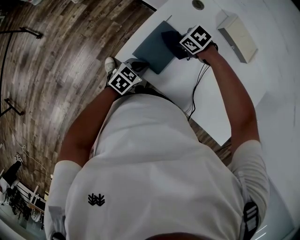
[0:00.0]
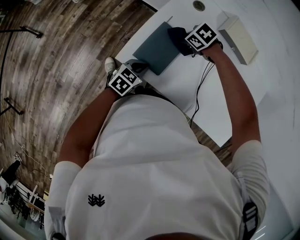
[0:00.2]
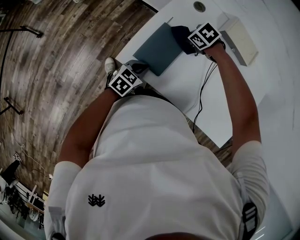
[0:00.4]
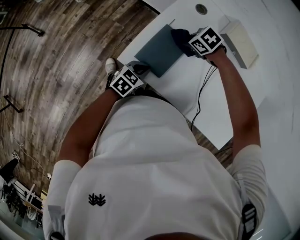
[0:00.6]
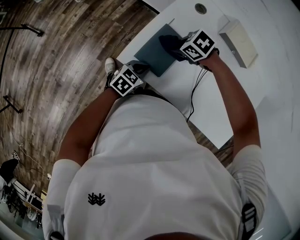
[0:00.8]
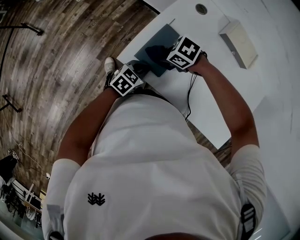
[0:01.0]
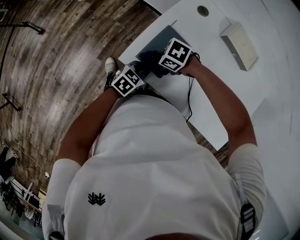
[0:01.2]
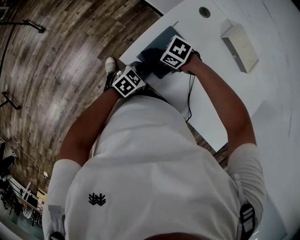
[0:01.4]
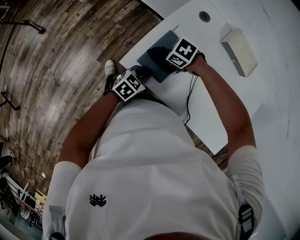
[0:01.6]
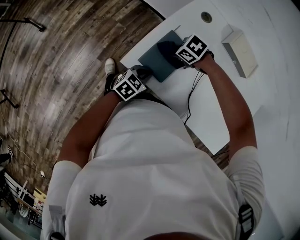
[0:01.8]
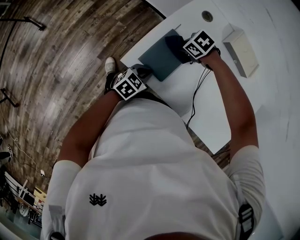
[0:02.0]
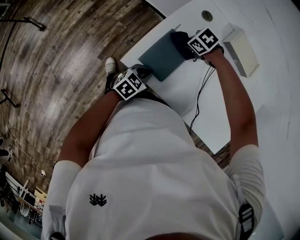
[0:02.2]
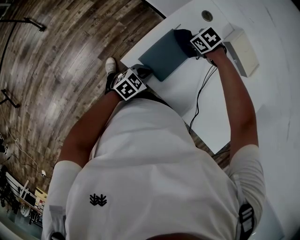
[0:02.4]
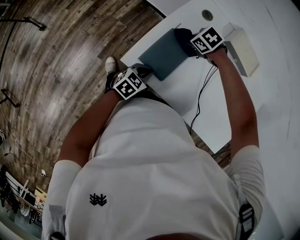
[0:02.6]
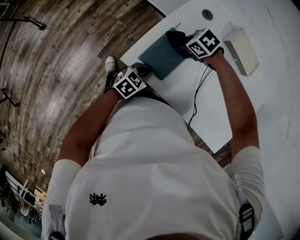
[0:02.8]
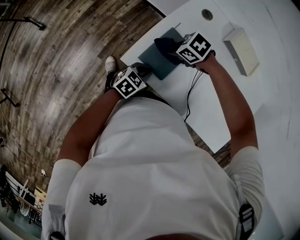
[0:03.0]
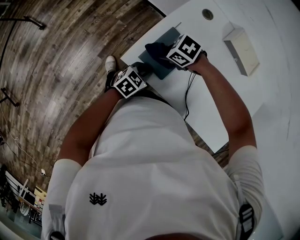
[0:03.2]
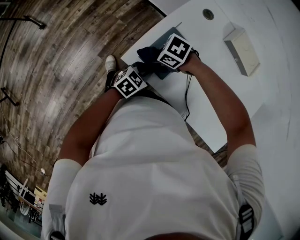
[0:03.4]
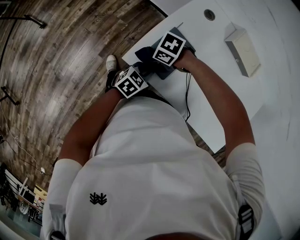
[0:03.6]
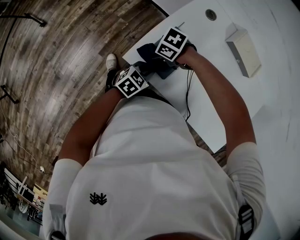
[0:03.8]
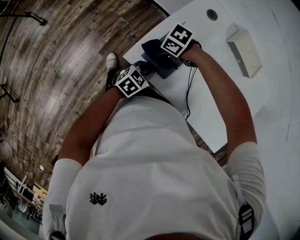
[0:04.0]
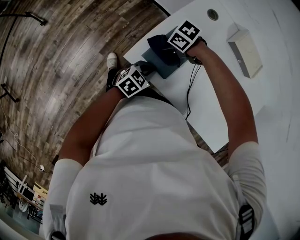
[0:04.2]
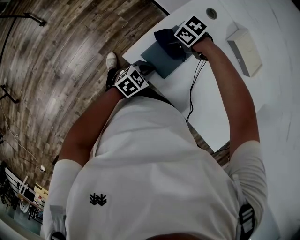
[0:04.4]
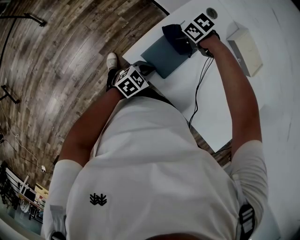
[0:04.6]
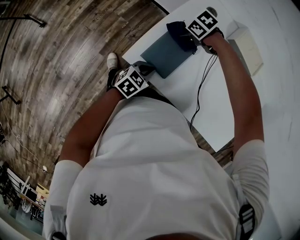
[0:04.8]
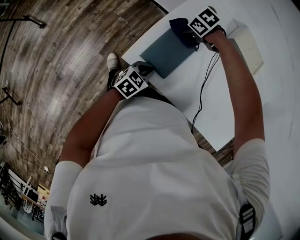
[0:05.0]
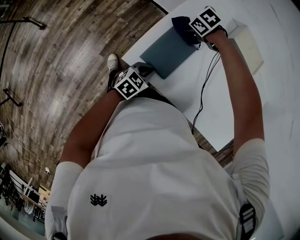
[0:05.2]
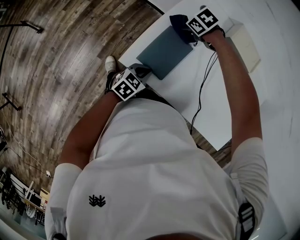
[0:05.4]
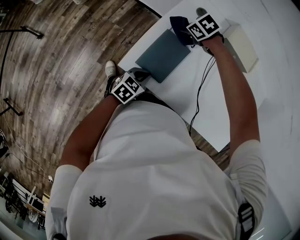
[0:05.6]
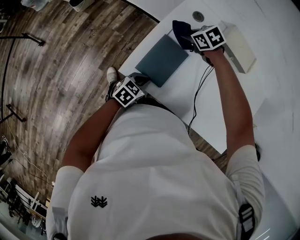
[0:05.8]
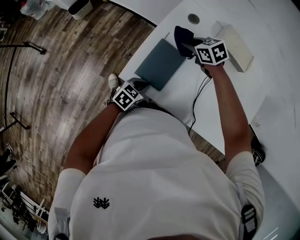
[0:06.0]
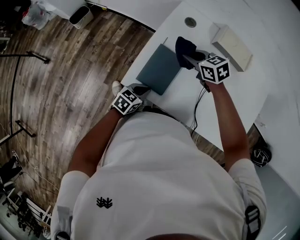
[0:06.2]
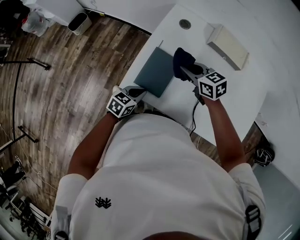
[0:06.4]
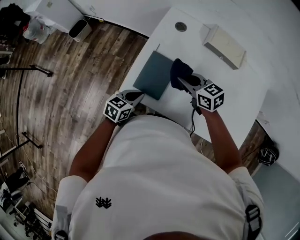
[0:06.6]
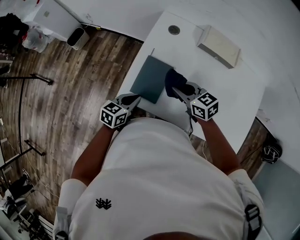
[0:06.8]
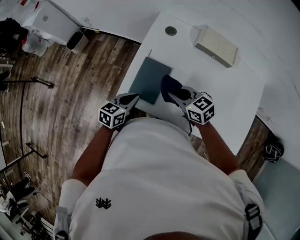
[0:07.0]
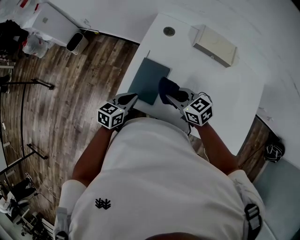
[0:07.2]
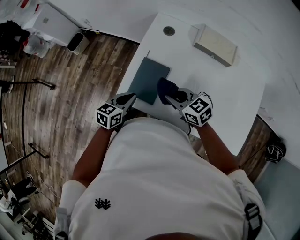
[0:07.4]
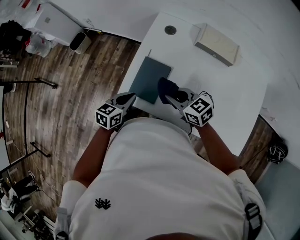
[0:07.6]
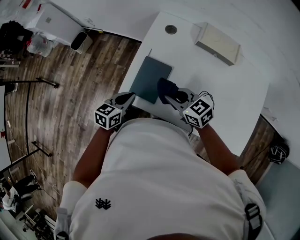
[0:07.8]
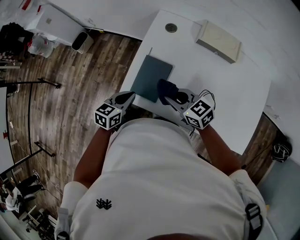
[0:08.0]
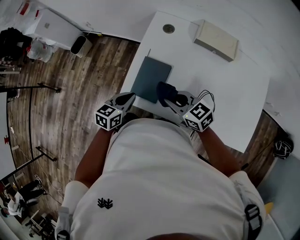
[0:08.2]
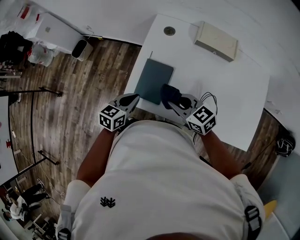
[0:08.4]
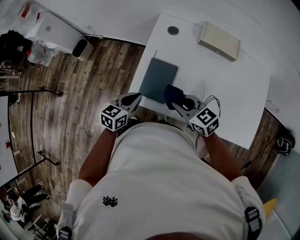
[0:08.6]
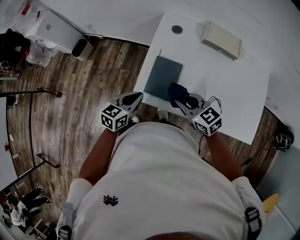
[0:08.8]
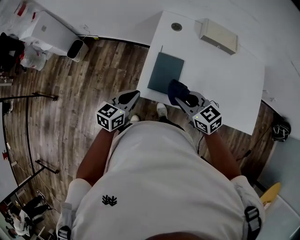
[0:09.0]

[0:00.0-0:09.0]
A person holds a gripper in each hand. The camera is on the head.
0:04.4 to 0:06.0: The right gripper moves approximately 15 cm, and turns by roughly 40 degrees.
0:06.0 to 0:07.6: The right gripper shifts by some 20 cm, and rotates roughly 30 degrees, while the left gripper moves upward, approximately 10 cm.
0:07.6 to 0:09.0: The left gripper travels to the left by some 10 cm, while the right gripper travels to the left and backward by approximately 10 cm.

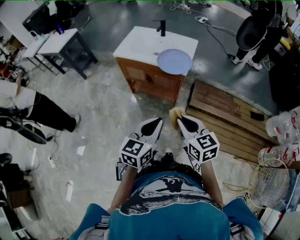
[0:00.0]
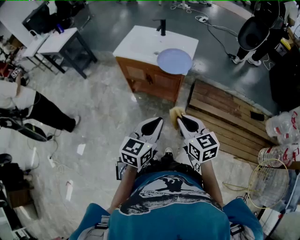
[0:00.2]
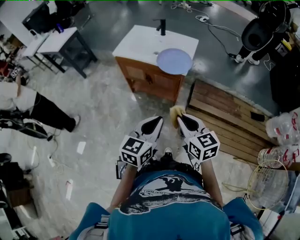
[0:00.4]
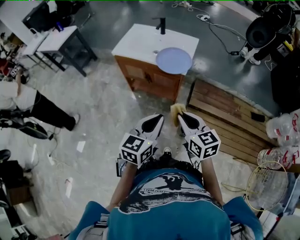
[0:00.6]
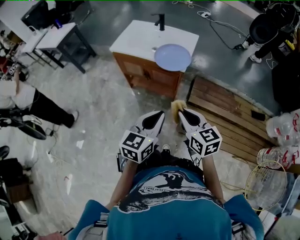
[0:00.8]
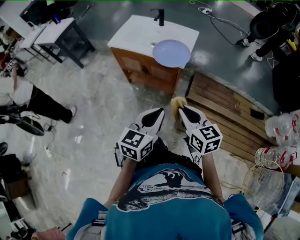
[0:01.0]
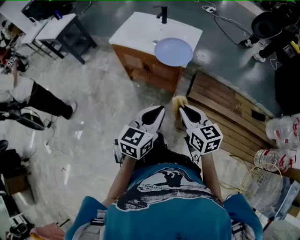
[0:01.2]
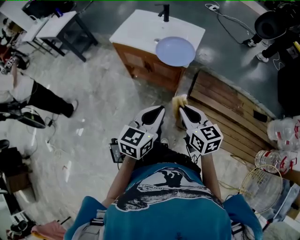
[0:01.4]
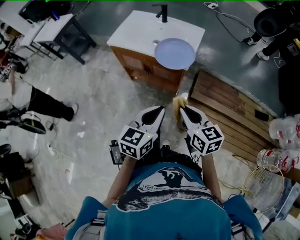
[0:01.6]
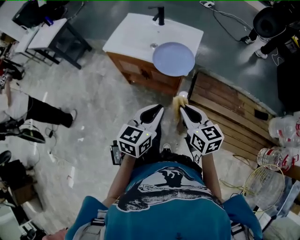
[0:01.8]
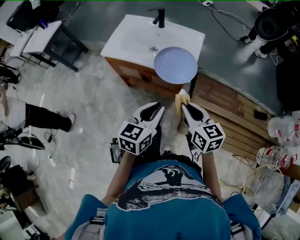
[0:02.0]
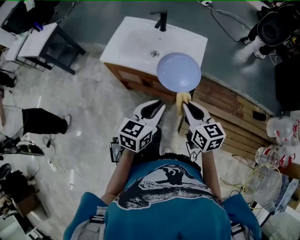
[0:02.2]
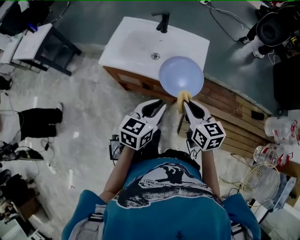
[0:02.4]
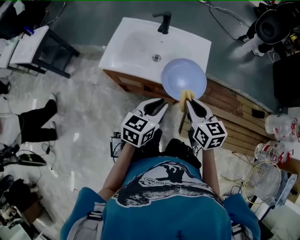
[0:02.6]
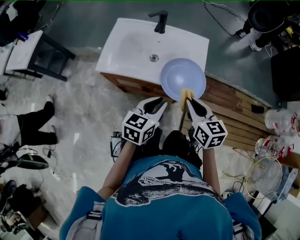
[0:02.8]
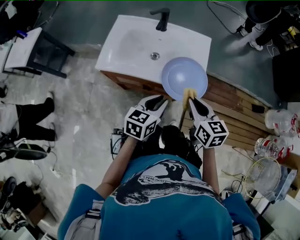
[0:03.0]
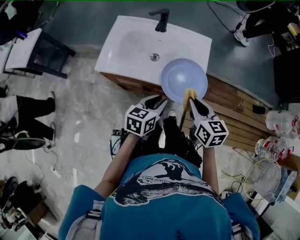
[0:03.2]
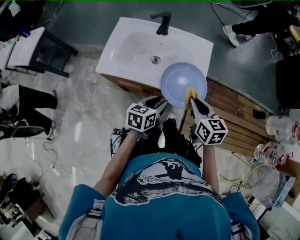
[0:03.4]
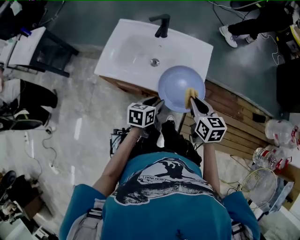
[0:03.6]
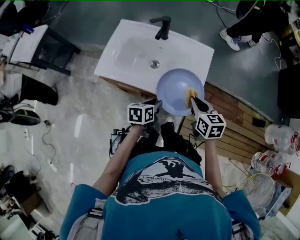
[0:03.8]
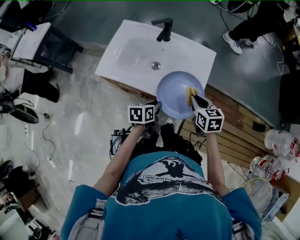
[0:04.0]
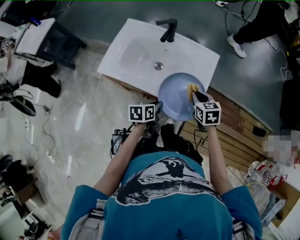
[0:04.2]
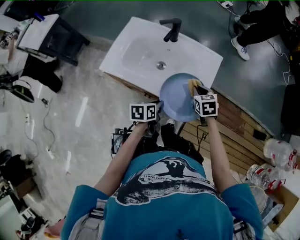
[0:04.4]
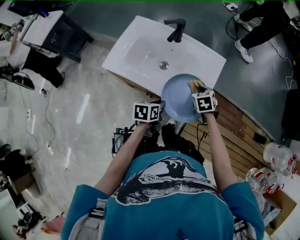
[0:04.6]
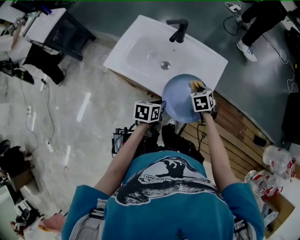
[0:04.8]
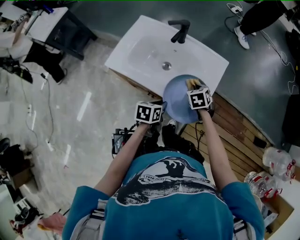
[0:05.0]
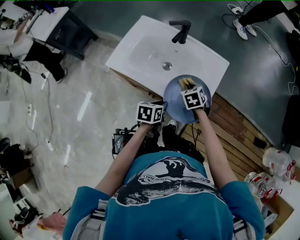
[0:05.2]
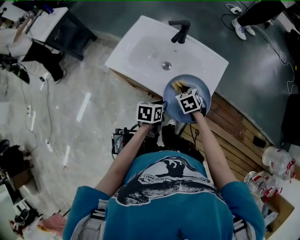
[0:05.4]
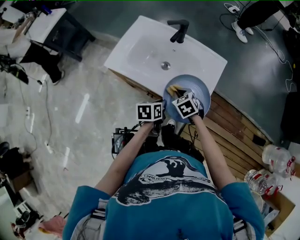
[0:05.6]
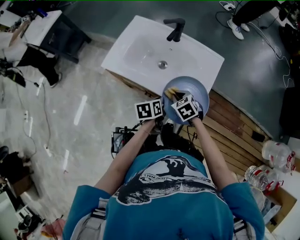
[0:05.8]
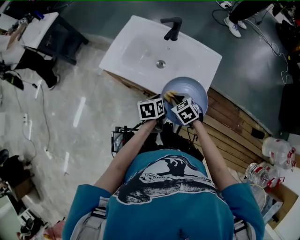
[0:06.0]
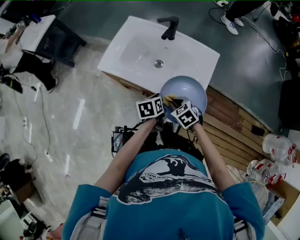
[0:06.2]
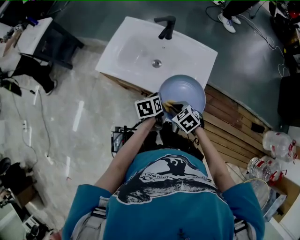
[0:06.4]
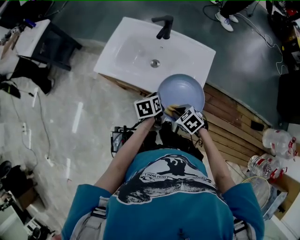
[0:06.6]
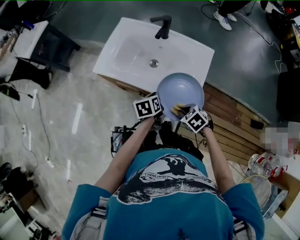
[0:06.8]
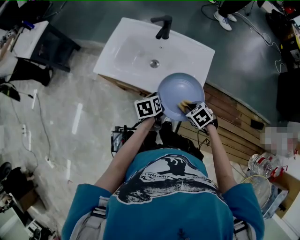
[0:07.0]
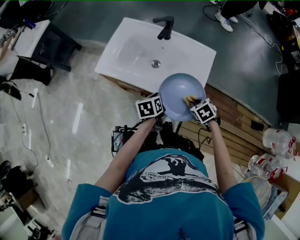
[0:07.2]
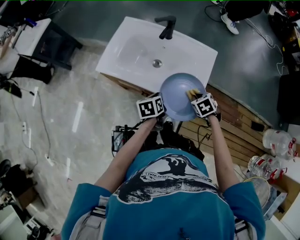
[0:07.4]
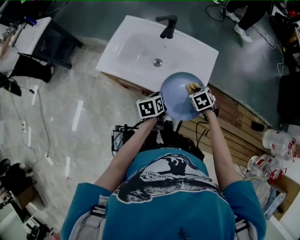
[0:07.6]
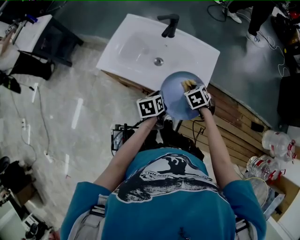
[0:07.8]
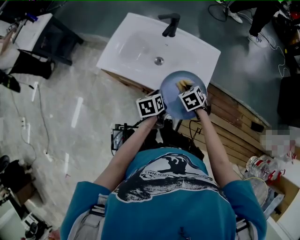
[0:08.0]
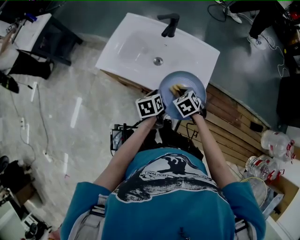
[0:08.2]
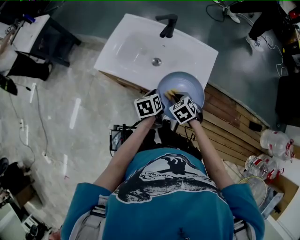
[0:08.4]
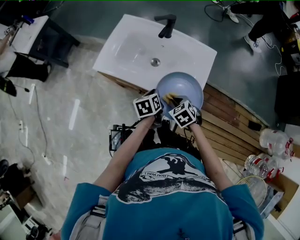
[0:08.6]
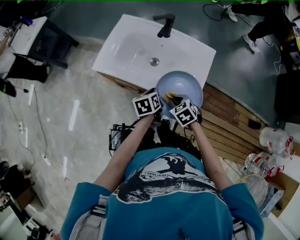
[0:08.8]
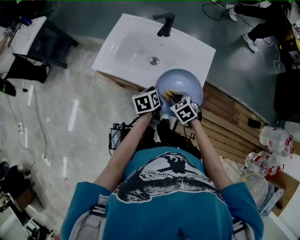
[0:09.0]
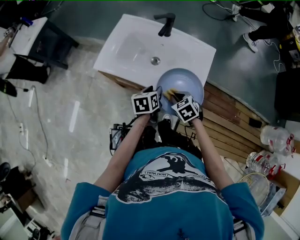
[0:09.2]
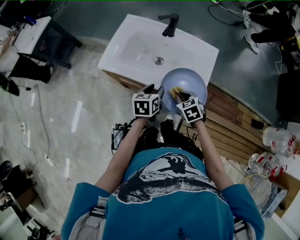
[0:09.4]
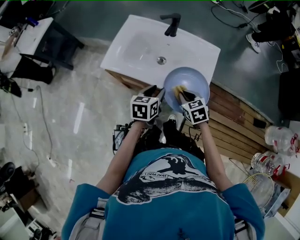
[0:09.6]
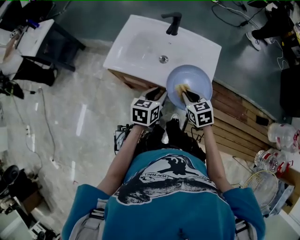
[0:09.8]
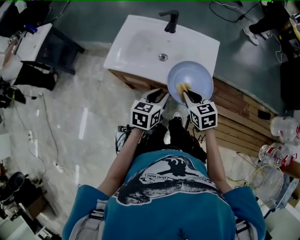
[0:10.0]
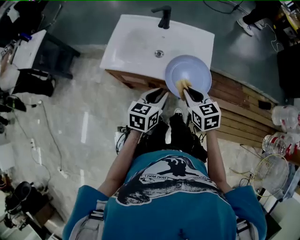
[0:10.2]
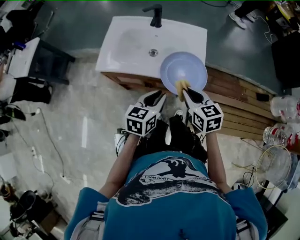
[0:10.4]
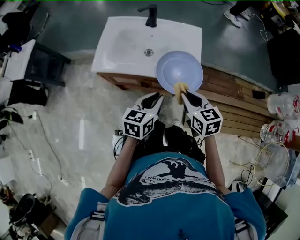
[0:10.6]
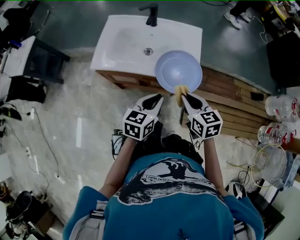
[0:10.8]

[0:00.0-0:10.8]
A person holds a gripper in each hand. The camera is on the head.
0:00.0 to 0:01.6: Both grippers travel together forward, approximately 10 cm.
0:01.6 to 0:03.0: The left gripper goes some 25 cm forward and to the left. Meanwhile the right gripper is displaced forward by roughly 20 cm.
0:03.0 to 0:04.6: The left gripper moves downward and forward, approximately 15 cm, and rotates about 30 degrees; the right gripper shifts roughly 25 cm forward and downward, and changes its angle by some 40 degrees.
0:04.6 to 0:06.2: The right gripper shifts by about 15 cm, and changes its angle by some 20 degrees.
0:06.2 to 0:07.8: The right gripper changes place by about 10 cm, and swivels some 20 degrees.
0:07.8 to 0:09.2: The left gripper opens, while the right gripper is displaced to the left and backward by some 10 cm.
0:09.2 to 0:10.8: The right gripper is displaced upward and backward by approximately 20 cm, and turns by some 40 degrees; the left gripper is displaced backward and upward by approximately 20 cm, swivels approximately 40 degrees, and closes its fingers.

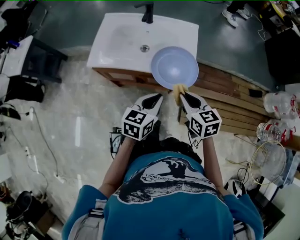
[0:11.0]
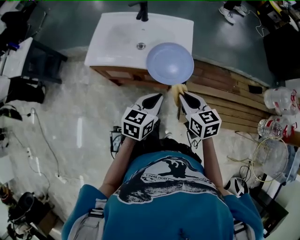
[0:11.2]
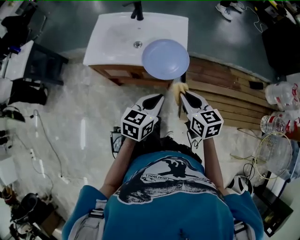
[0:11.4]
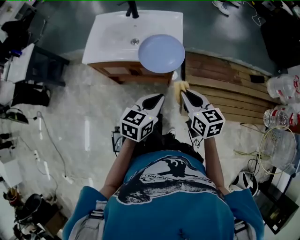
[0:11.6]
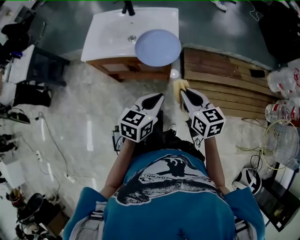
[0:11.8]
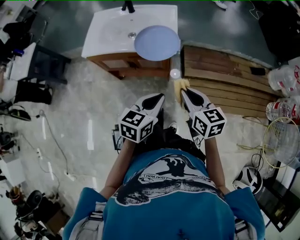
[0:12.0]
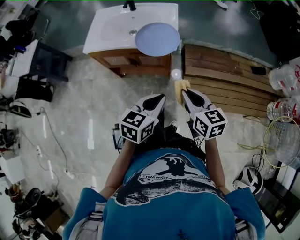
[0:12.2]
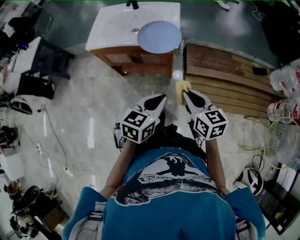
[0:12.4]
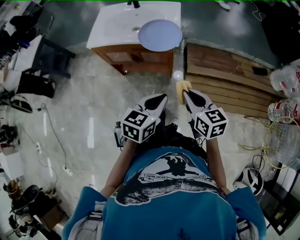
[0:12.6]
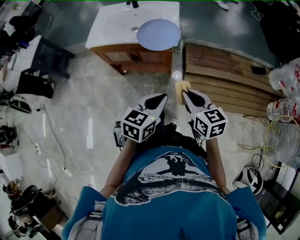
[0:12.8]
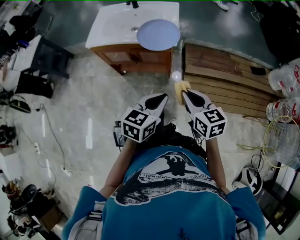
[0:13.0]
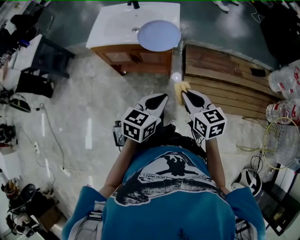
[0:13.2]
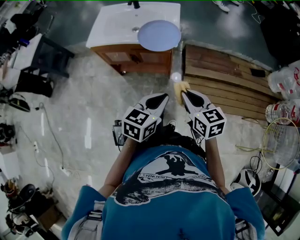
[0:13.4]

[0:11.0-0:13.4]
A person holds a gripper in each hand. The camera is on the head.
0:11.0 to 0:12.2: Both grippers travel together backward and to the right, roughly 20 cm.
0:12.2 to 0:13.4: The grippers make only small movements.

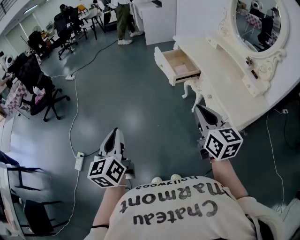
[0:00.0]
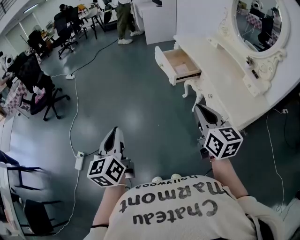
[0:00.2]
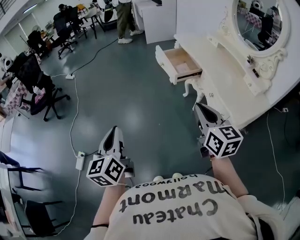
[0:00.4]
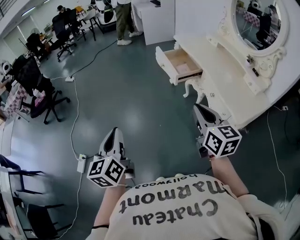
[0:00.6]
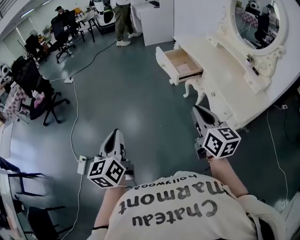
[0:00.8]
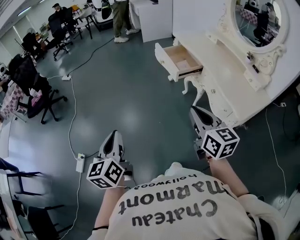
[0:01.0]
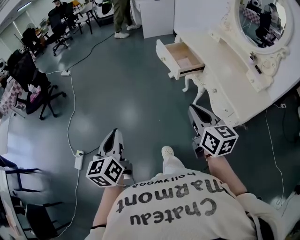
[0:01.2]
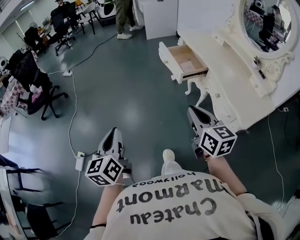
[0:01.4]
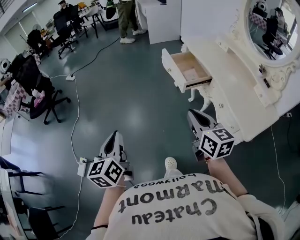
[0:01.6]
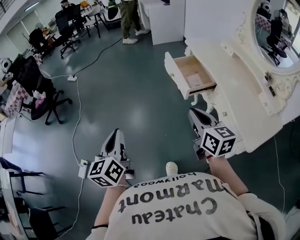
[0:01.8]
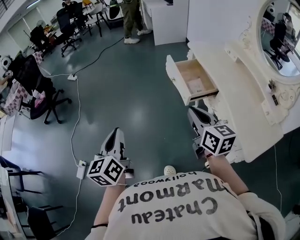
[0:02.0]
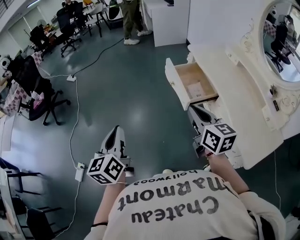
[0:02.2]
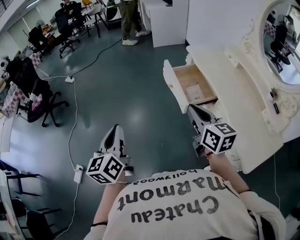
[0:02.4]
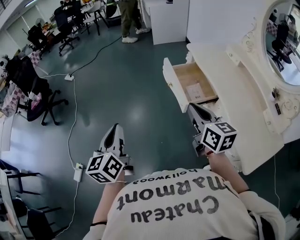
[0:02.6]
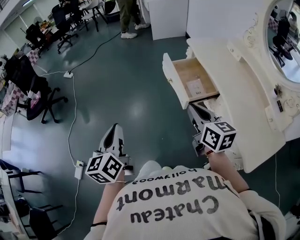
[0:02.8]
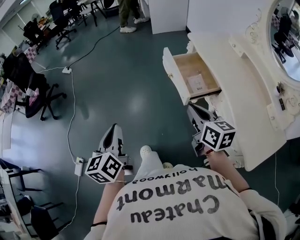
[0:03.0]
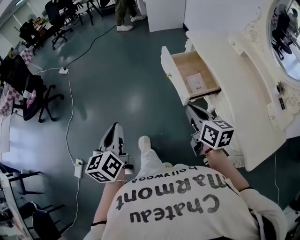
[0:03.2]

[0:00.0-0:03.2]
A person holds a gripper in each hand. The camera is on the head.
0:00.0 to 0:01.6: The right gripper shifts roughly 15 cm forward, to the left and downward, while the left gripper goes about 10 cm forward.
0:01.6 to 0:03.2: Both grippers travel together forward, roughly 20 cm.
